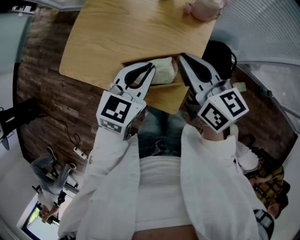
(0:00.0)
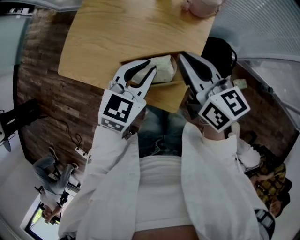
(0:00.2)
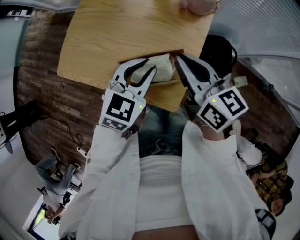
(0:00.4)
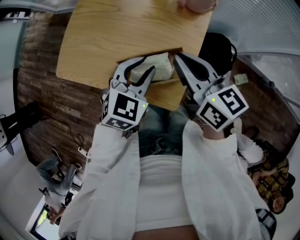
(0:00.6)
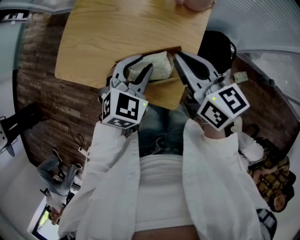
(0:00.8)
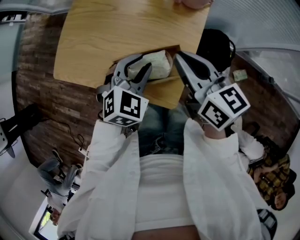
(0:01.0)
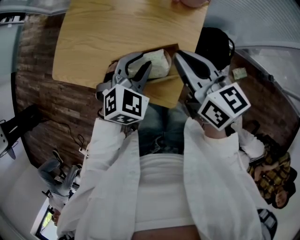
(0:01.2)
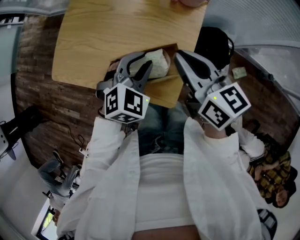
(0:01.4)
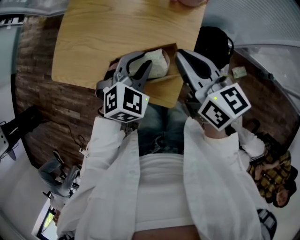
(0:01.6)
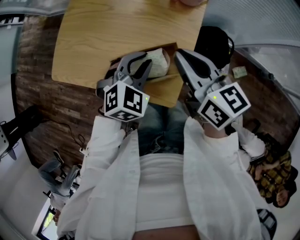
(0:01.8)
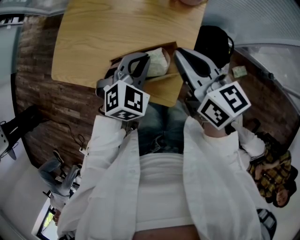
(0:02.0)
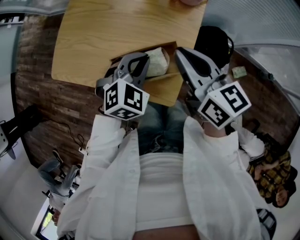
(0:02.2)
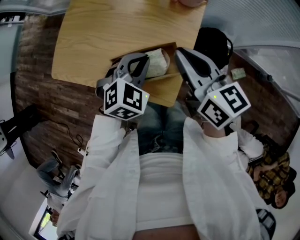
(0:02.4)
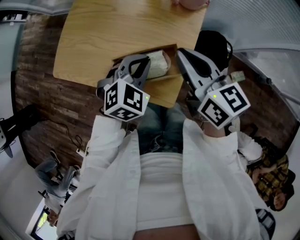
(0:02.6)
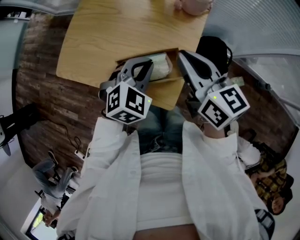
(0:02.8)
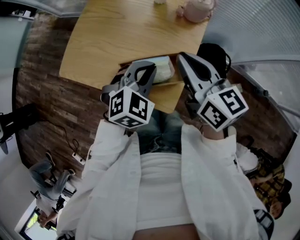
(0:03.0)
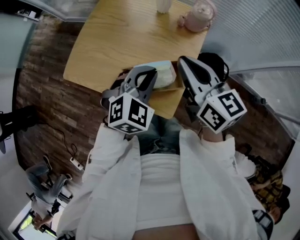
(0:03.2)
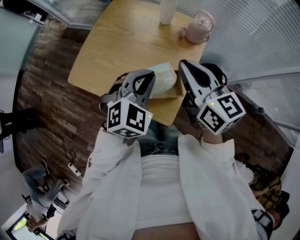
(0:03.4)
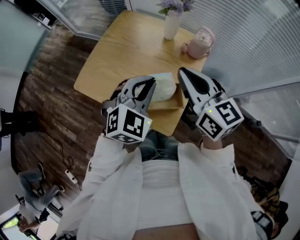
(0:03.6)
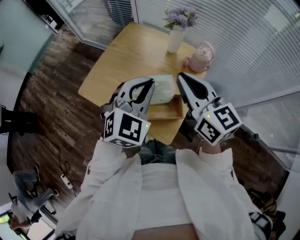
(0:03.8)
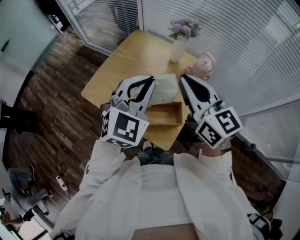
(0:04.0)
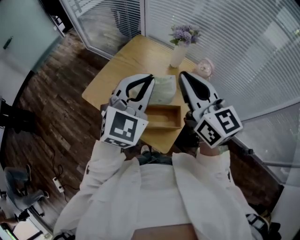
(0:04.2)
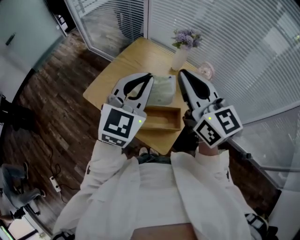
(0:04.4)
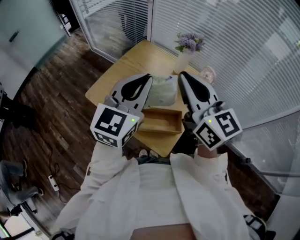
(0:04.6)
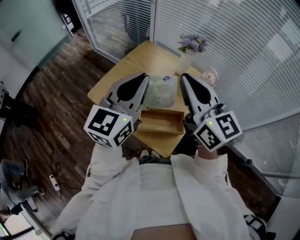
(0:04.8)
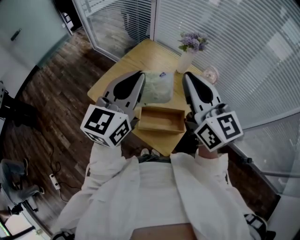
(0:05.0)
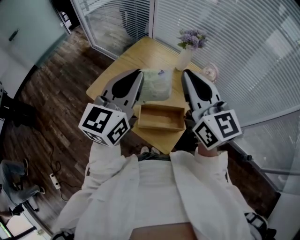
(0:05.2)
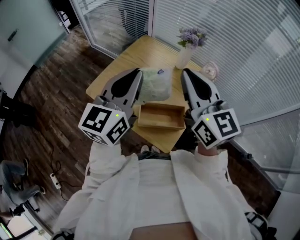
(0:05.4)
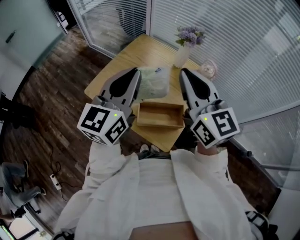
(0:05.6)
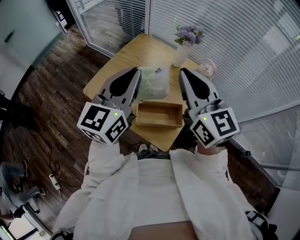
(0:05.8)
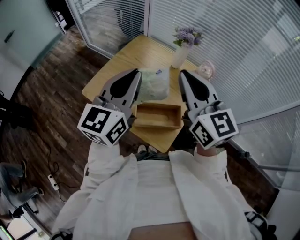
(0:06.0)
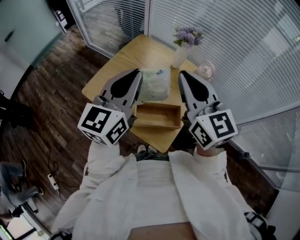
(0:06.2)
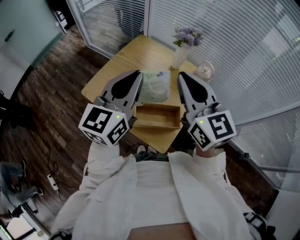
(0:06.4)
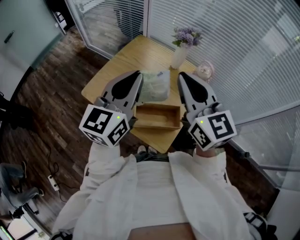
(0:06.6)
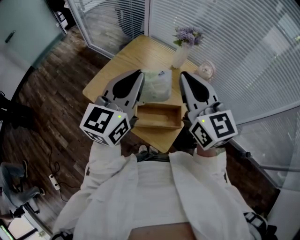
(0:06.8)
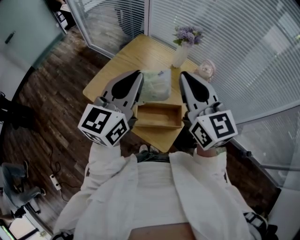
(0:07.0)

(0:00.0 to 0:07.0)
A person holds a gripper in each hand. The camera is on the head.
0:00.0 - 0:01.4: The left gripper heads downward, covering approximately 5 cm, swivels about 40 degrees, and opens.
0:01.4 - 0:02.8: The left gripper closes up.
0:02.8 - 0:04.2: Both grippers move upward, about 20 cm. The right gripper rotates roughly 30 degrees. The left gripper points its fingers roughly 40 degrees further upward.
0:04.2 - 0:05.6: The left gripper is displaced to the left by approximately 5 cm, and rotates approximately 40 degrees.
0:05.6 - 0:07.0: Both grippers stay put.

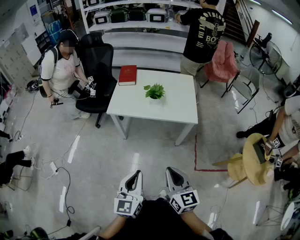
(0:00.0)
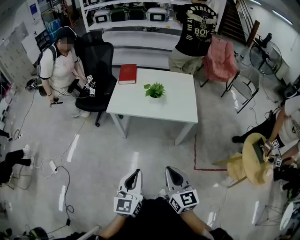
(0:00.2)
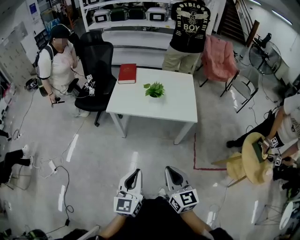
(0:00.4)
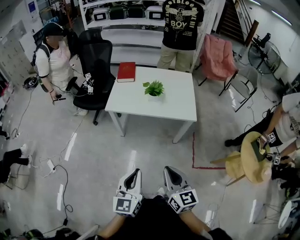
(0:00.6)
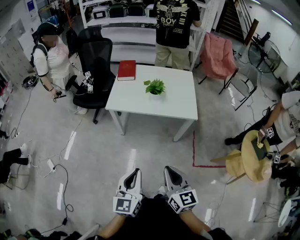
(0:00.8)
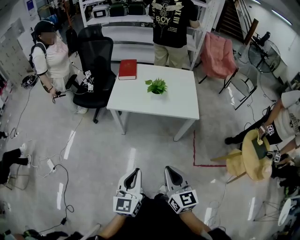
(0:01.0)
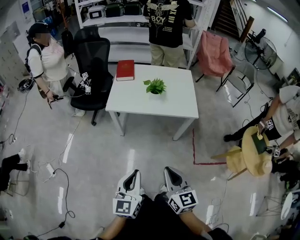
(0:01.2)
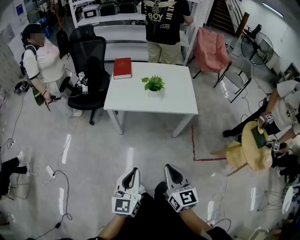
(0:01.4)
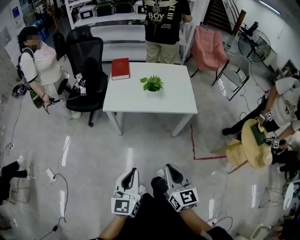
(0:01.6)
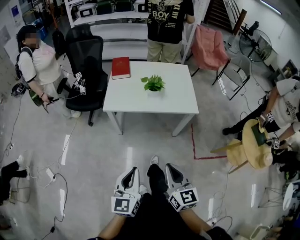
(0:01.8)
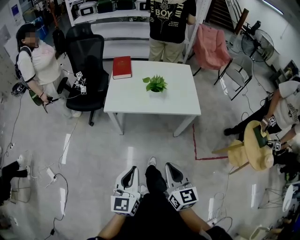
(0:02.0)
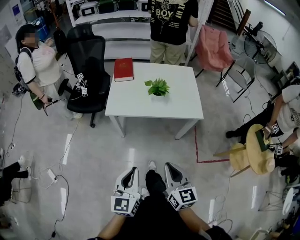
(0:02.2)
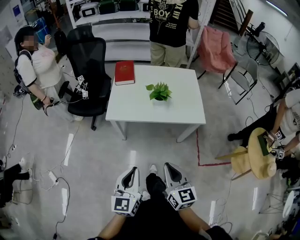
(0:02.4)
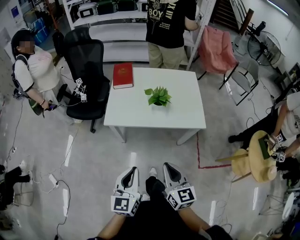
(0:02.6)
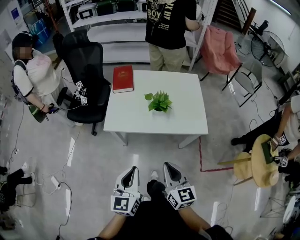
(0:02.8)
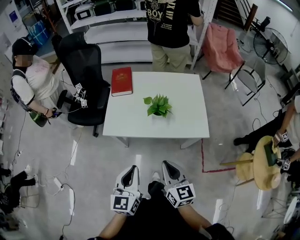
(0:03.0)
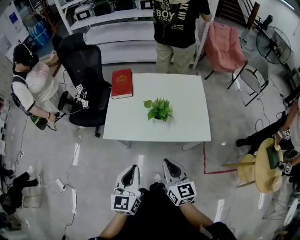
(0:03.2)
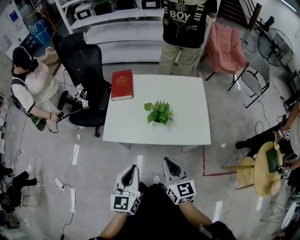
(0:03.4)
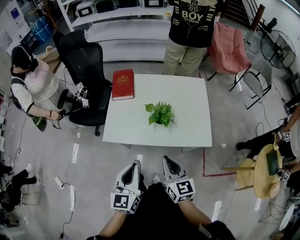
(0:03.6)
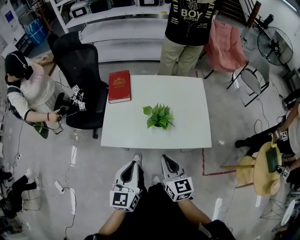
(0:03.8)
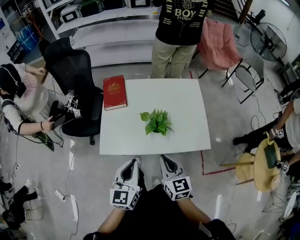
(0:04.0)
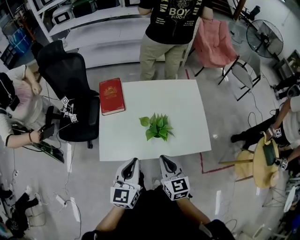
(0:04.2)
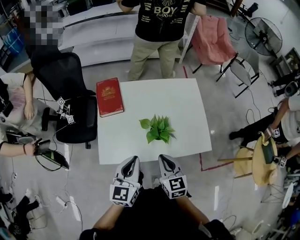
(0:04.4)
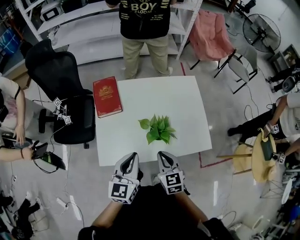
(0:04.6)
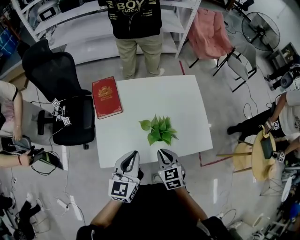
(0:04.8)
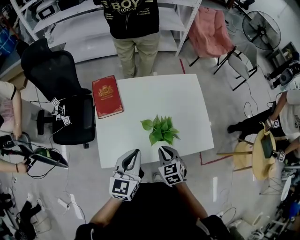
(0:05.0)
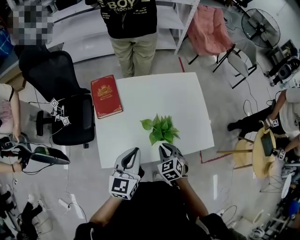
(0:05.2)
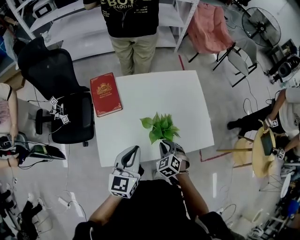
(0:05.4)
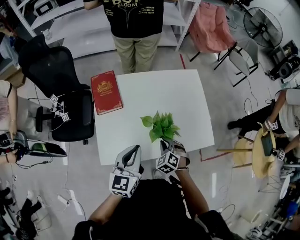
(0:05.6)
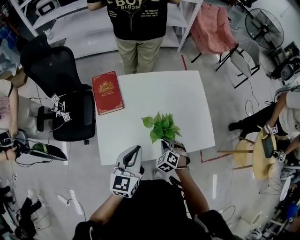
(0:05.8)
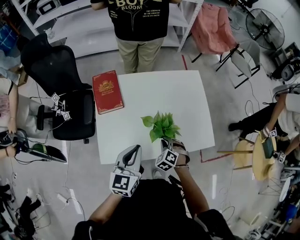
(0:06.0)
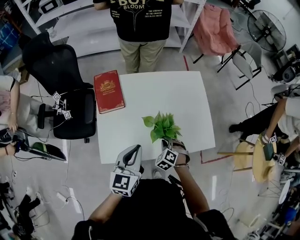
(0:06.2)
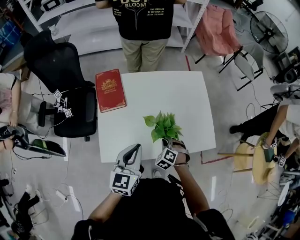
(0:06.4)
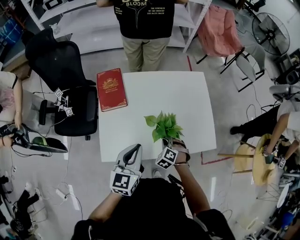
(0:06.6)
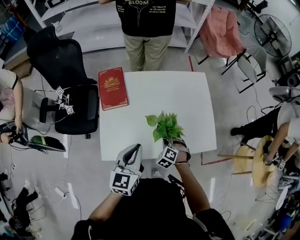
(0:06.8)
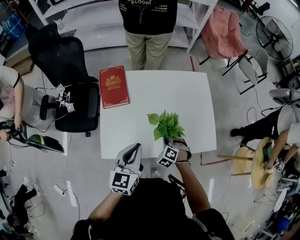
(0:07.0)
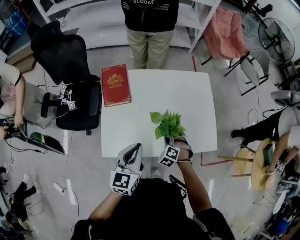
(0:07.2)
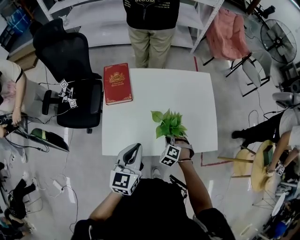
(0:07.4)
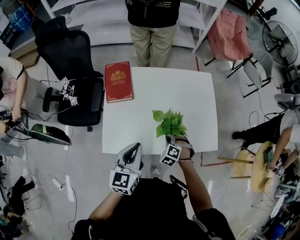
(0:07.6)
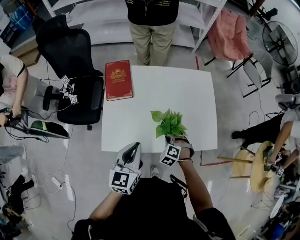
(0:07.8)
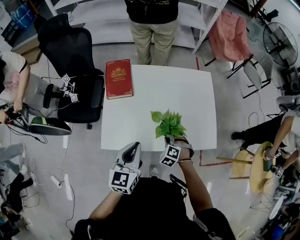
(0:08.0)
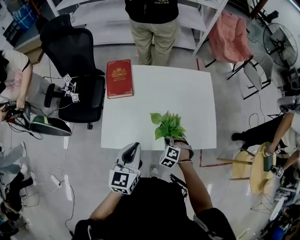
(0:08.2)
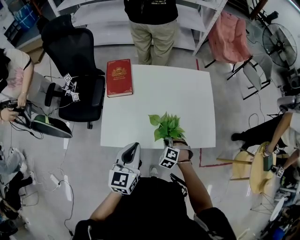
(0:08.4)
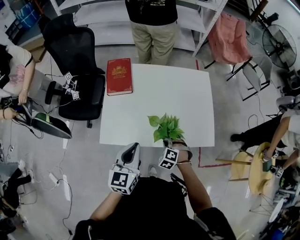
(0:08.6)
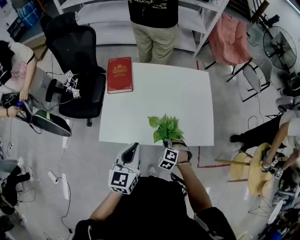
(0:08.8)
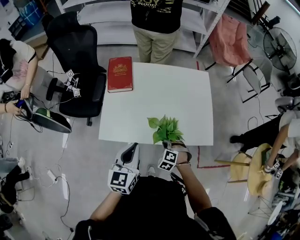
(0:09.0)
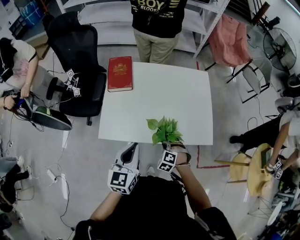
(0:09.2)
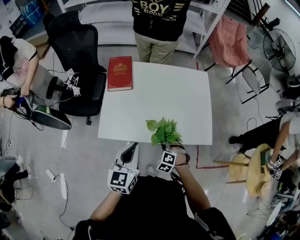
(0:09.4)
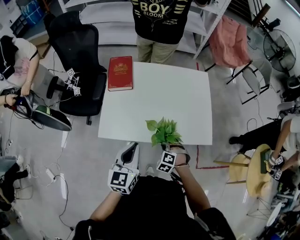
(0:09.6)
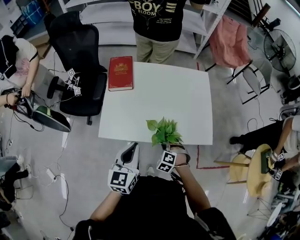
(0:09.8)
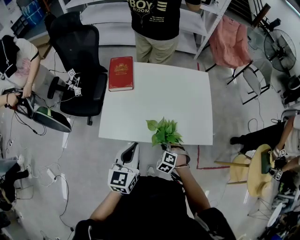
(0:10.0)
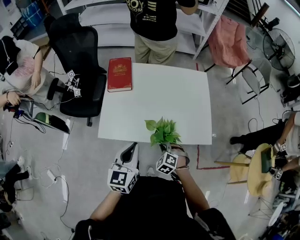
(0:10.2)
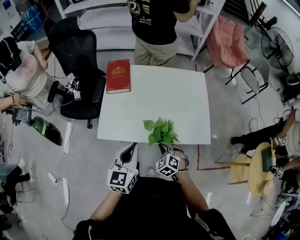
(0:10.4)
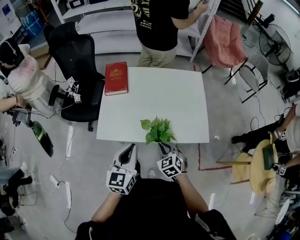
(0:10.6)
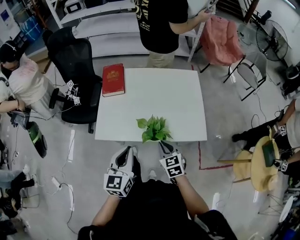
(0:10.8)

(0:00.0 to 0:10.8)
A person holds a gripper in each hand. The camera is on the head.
0:00.0 - 0:01.6: The two grippers go approximately 10 cm to the left.
0:01.6 - 0:03.0: Both grippers travel together forward, approximately 25 cm.
0:03.0 - 0:04.6: The grippers both shift forward by some 25 cm. The right gripper rotates roughly 20 degrees.
0:04.6 - 0:06.2: The right gripper travels downward and forward by some 15 cm, and twists some 40 degrees counterclockwise, seen from behind.
0:06.2 - 0:07.8: The grippers make only small movements.
0:07.8 - 0:09.2: Both grippers move backward, about 10 cm.
0:09.2 - 0:10.8: The right gripper moves upward, approximately 15 cm, and rotates around the line of its fingers by approximately 50 degrees, clockwise from behind; the left gripper shifts approximately 5 cm backward.

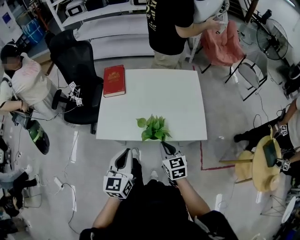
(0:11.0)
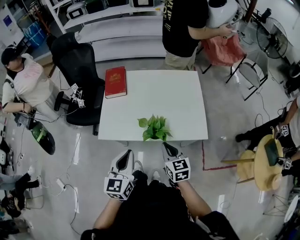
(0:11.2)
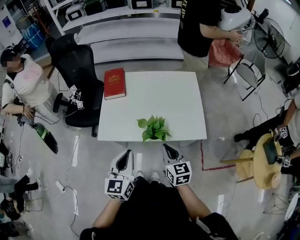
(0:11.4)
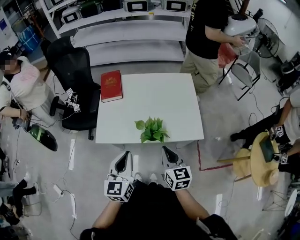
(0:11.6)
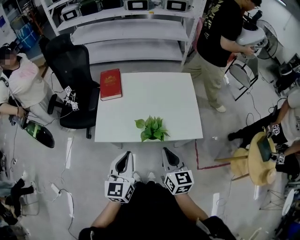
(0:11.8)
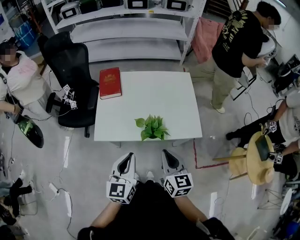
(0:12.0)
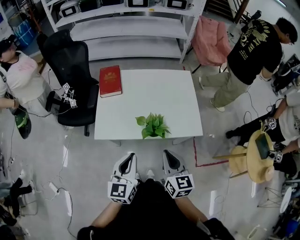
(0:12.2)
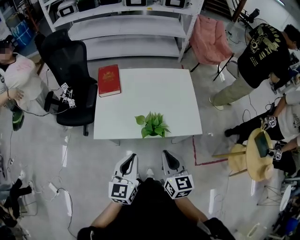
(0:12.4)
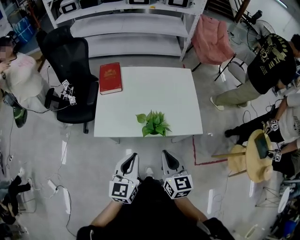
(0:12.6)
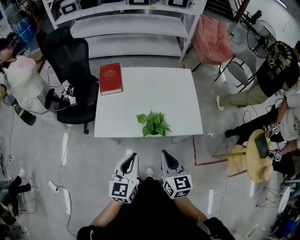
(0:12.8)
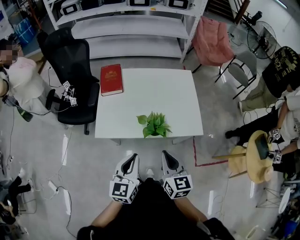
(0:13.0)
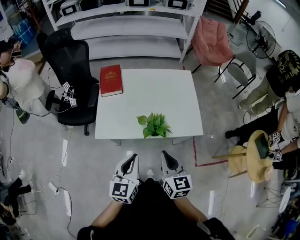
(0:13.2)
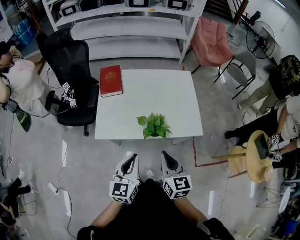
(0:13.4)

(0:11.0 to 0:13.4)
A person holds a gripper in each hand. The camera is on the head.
0:11.0 - 0:12.2: The right gripper heads upward and backward, covering some 15 cm.
0:12.2 - 0:13.4: There are only small adjustments of the grippers.

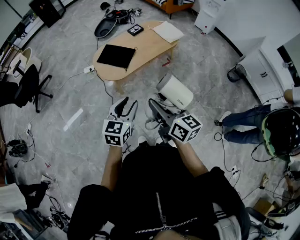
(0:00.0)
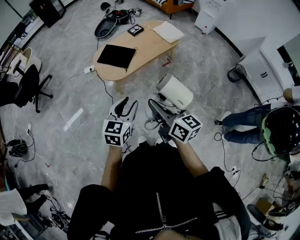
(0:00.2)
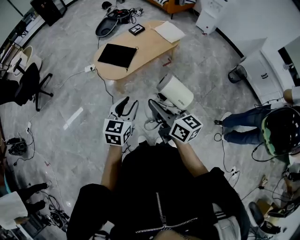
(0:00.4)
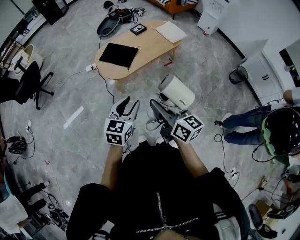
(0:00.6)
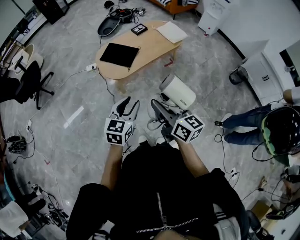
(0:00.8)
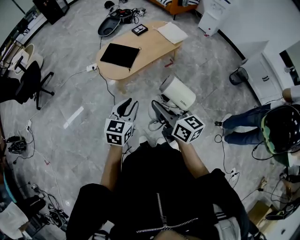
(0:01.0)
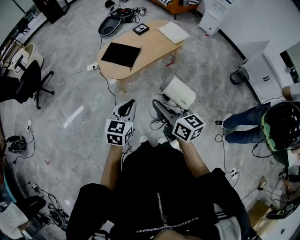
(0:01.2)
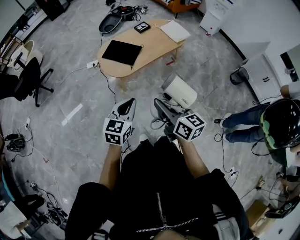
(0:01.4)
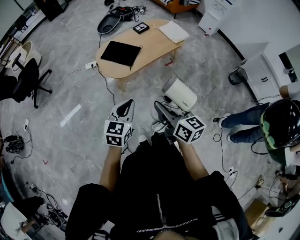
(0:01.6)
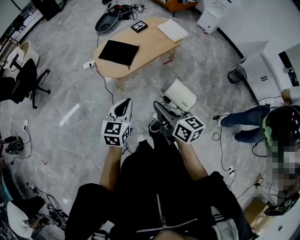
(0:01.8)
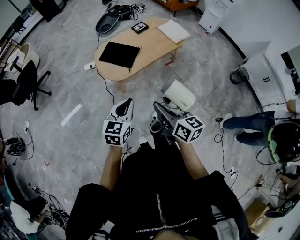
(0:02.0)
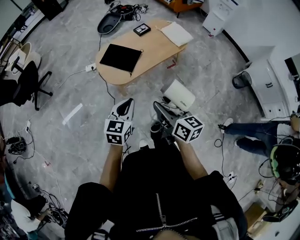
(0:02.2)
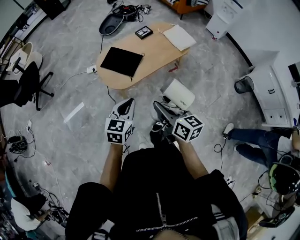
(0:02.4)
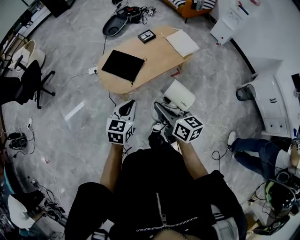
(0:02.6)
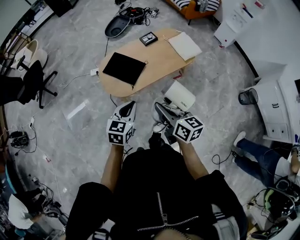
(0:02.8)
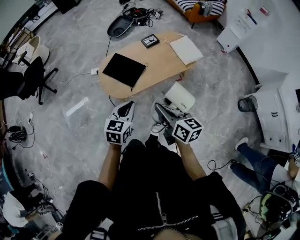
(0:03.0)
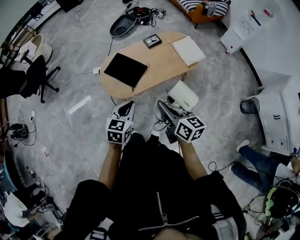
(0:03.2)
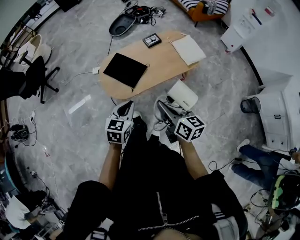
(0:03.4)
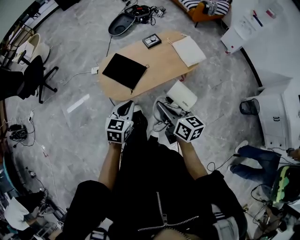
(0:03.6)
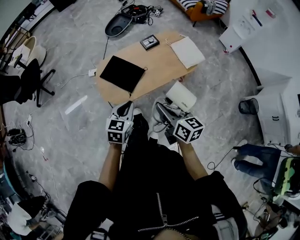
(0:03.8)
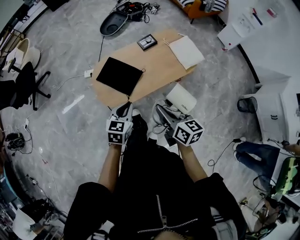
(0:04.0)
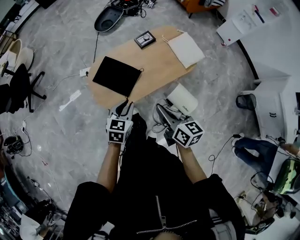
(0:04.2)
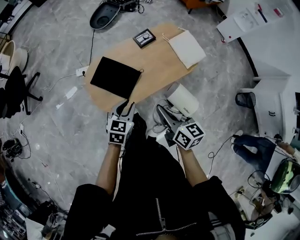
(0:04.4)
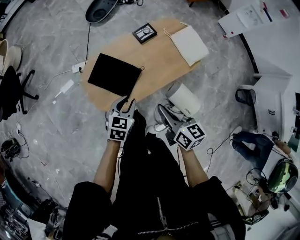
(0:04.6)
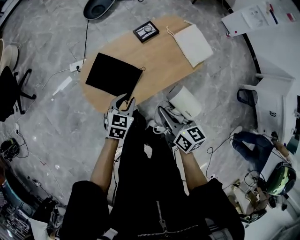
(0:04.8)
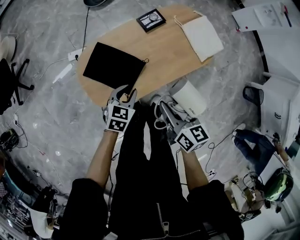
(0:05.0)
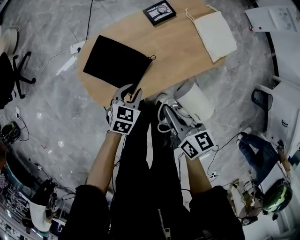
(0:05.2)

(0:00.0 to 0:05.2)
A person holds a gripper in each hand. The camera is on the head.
0:00.0 - 0:01.8: The left gripper goes roughly 5 cm to the left, and closes.
0:01.8 - 0:03.4: The left gripper moves forward, some 25 cm; the right gripper moves forward and to the right, about 30 cm.
0:03.4 - 0:05.2: The right gripper moves forward and downward, roughly 35 cm. The left gripper goes some 40 cm downward and forward, turns by approximately 20 degrees, and opens up.
